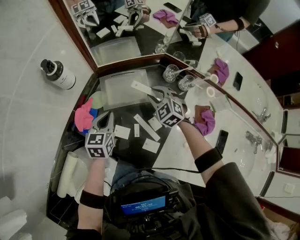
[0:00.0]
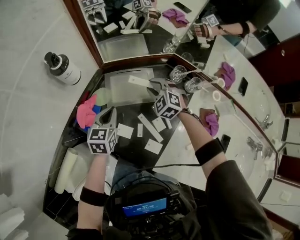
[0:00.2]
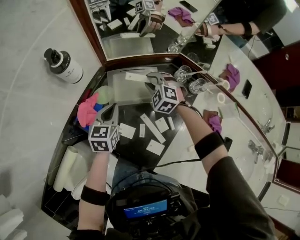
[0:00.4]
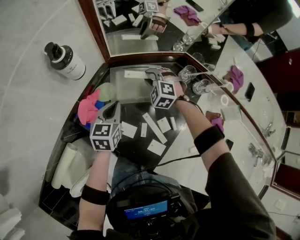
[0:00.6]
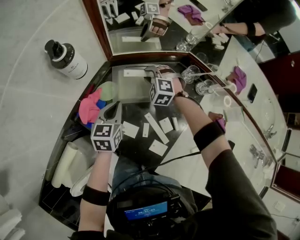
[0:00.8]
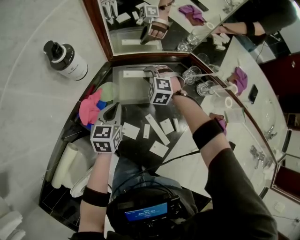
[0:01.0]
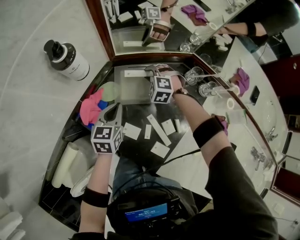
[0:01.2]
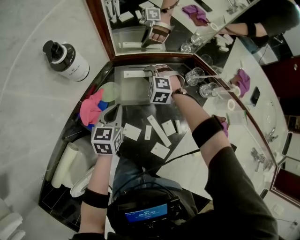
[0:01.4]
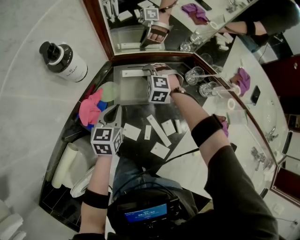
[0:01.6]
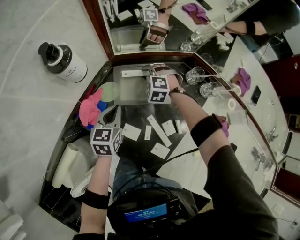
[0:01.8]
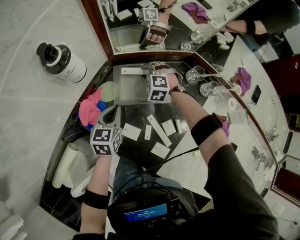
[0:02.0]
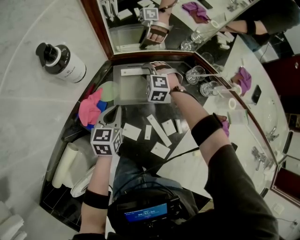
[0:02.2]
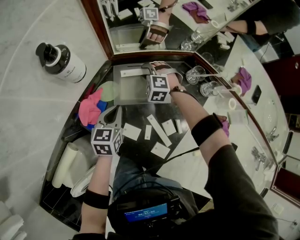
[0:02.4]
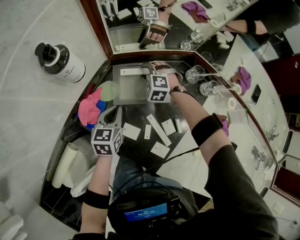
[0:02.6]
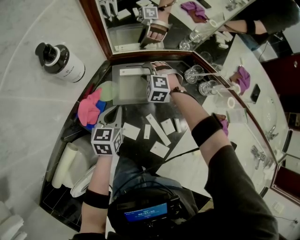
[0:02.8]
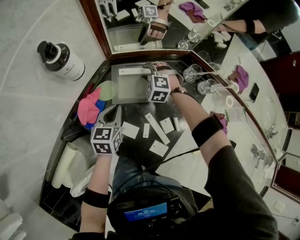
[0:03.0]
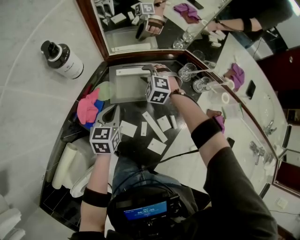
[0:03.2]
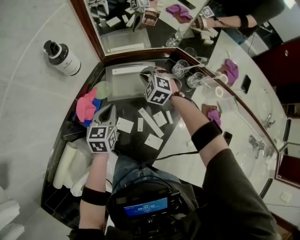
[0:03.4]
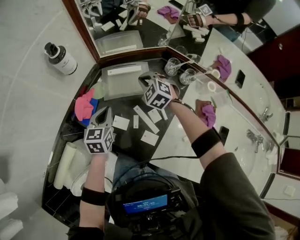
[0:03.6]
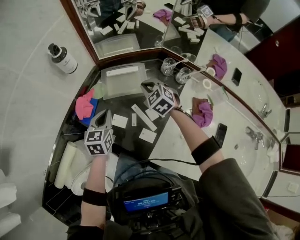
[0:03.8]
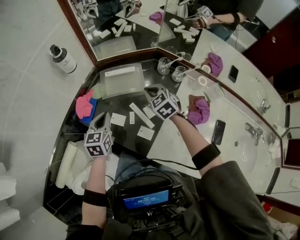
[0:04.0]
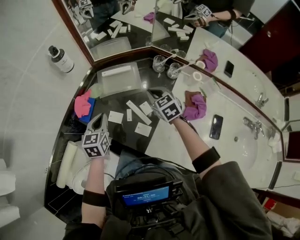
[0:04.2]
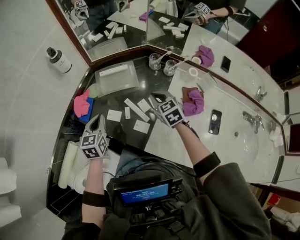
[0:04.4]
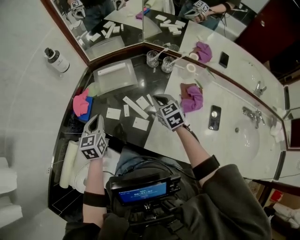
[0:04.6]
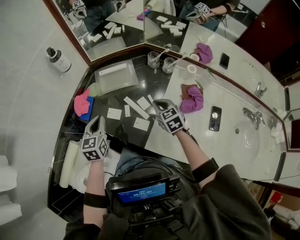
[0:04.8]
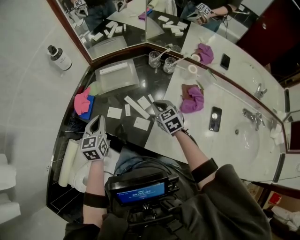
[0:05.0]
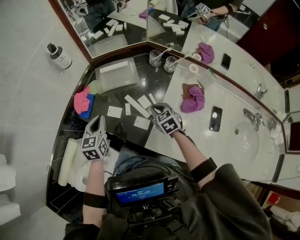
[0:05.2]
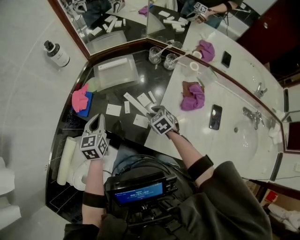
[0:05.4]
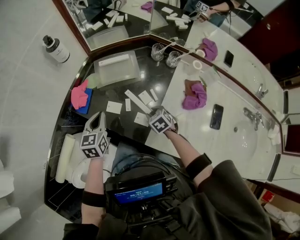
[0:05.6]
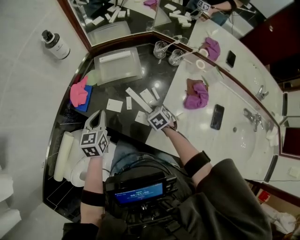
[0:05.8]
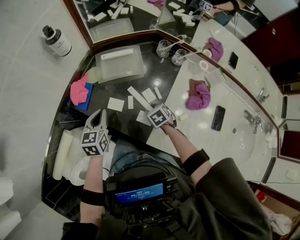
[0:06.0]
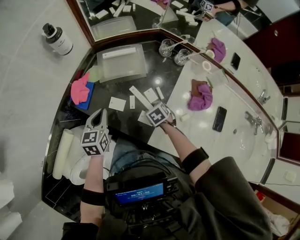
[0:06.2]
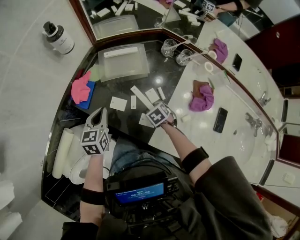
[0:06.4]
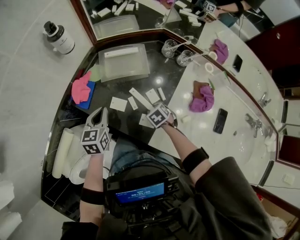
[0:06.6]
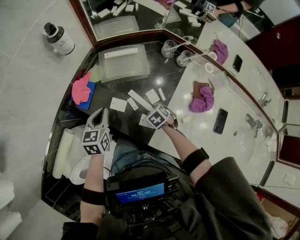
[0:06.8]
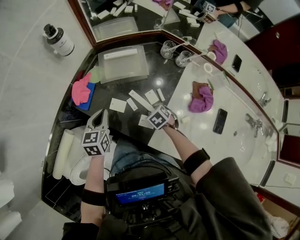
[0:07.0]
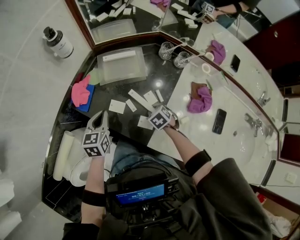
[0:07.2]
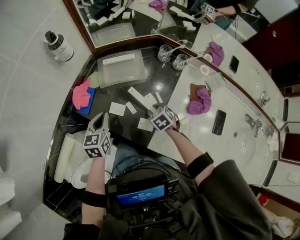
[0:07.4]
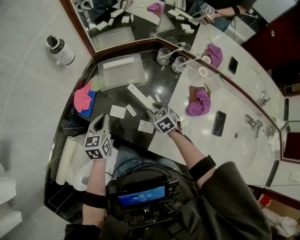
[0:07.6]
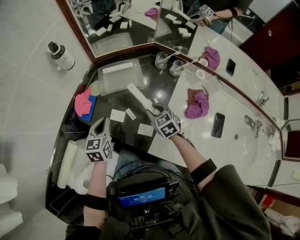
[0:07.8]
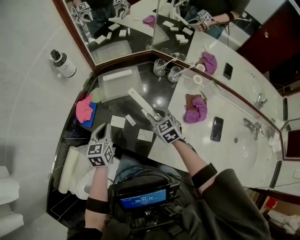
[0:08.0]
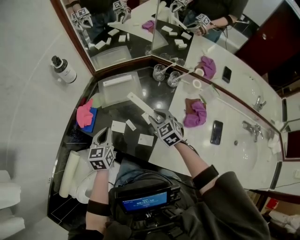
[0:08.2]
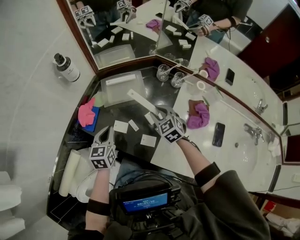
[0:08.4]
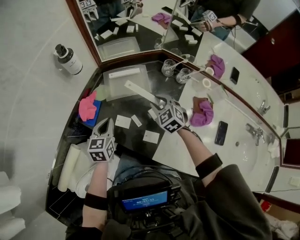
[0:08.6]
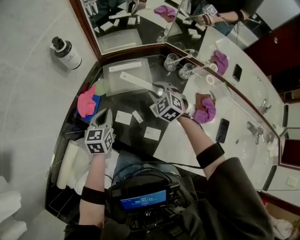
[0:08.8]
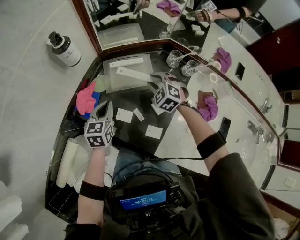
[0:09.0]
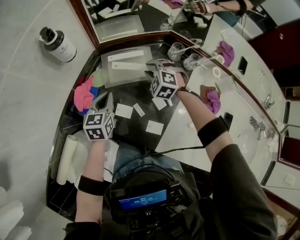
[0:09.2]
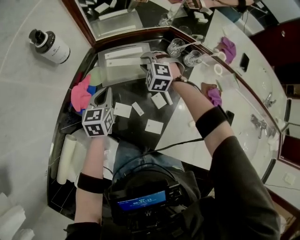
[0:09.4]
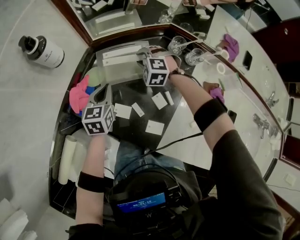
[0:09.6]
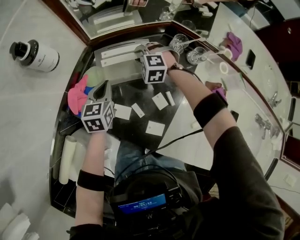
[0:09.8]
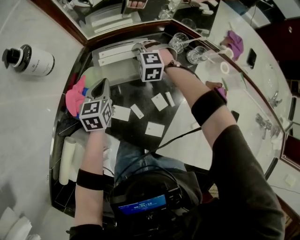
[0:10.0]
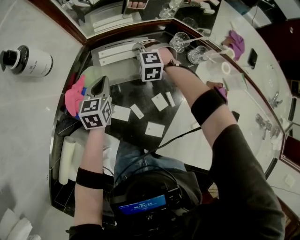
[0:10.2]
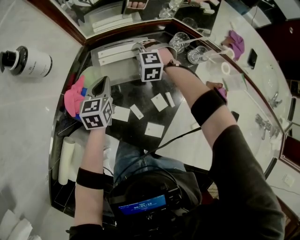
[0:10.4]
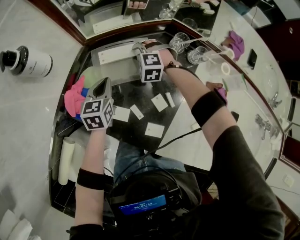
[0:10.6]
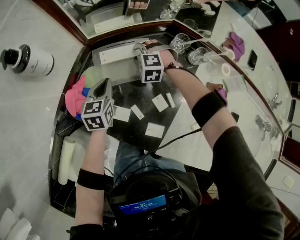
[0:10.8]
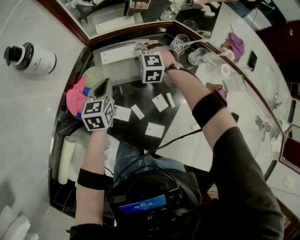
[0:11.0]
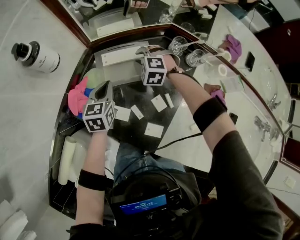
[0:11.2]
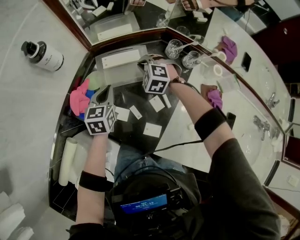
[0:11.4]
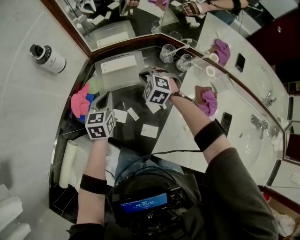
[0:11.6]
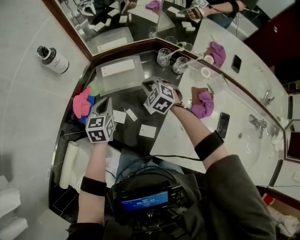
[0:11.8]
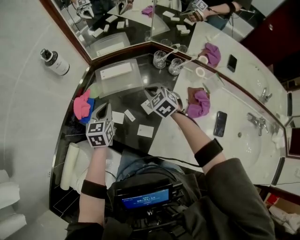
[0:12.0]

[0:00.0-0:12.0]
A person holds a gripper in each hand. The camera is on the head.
0:00.0 to 0:01.6: The left gripper shifts by about 5 cm, while the right gripper shifts some 20 cm forward, downward and to the left, and changes its angle by roughly 40 degrees.
0:01.6 to 0:03.0: Both grippers stay put.
0:03.0 to 0:04.4: The left gripper moves backward and upward, approximately 20 cm, while the right gripper heads backward, upward and to the right, covering some 35 cm, rotates around the line of its fingers by some 60 degrees, clockwise from behind, and closes.
0:04.4 to 0:06.0: The right gripper travels downward by approximately 20 cm, swivels some 30 degrees, and opens.
0:06.0 to 0:07.6: The right gripper heads upward, covering about 10 cm.
0:07.6 to 0:09.0: The left gripper goes roughly 10 cm forward, while the right gripper shifts some 15 cm forward, and turns by roughly 30 degrees.
0:09.0 to 0:10.4: The grippers both shift forward and downward by some 15 cm. The right gripper changes its angle by some 30 degrees.
0:10.4 to 0:12.0: Both grippers move backward and upward, about 20 cm. The right gripper rolls clockwise, seen from behind, by about 40 degrees, and closes up.

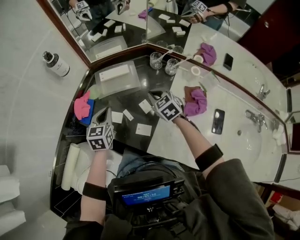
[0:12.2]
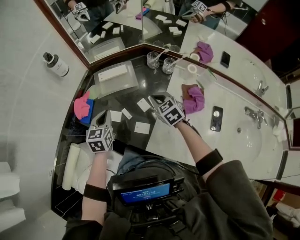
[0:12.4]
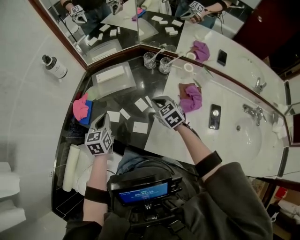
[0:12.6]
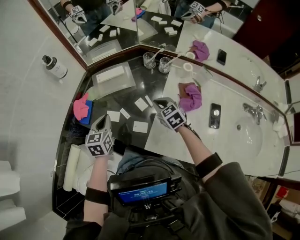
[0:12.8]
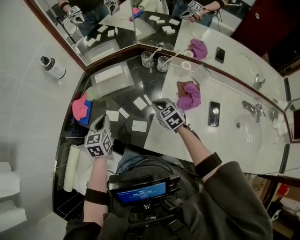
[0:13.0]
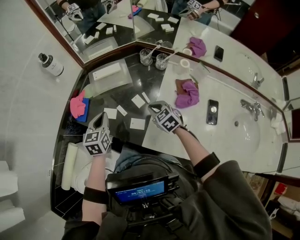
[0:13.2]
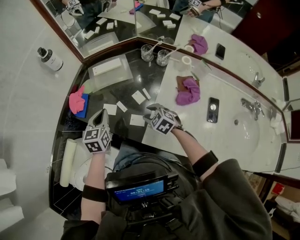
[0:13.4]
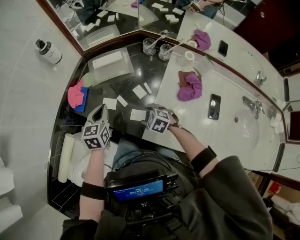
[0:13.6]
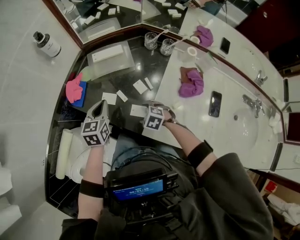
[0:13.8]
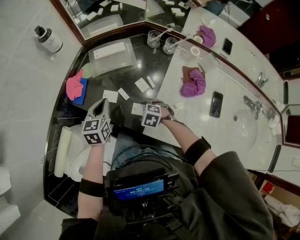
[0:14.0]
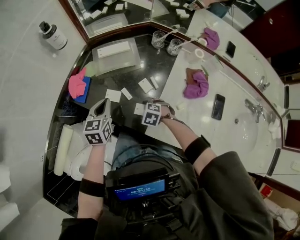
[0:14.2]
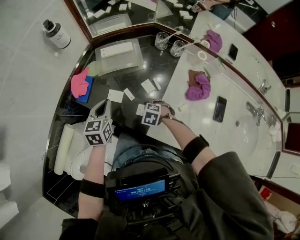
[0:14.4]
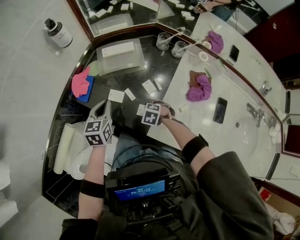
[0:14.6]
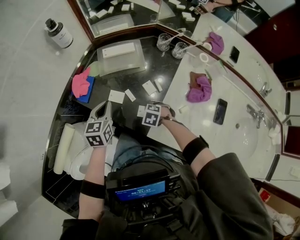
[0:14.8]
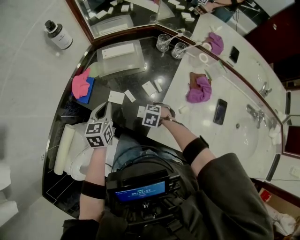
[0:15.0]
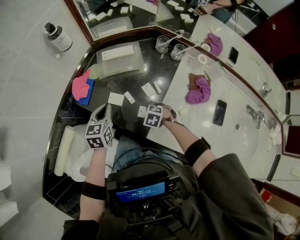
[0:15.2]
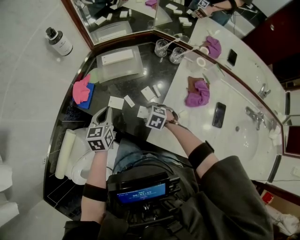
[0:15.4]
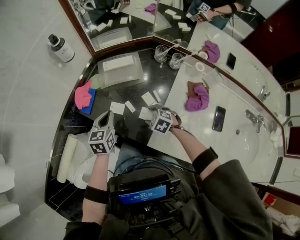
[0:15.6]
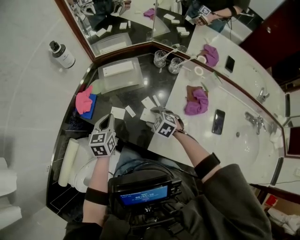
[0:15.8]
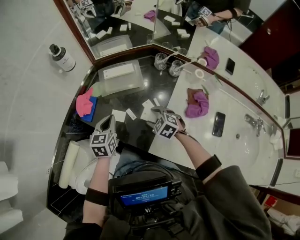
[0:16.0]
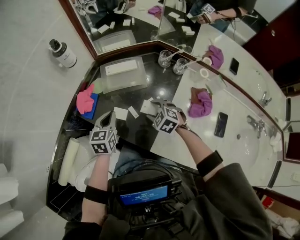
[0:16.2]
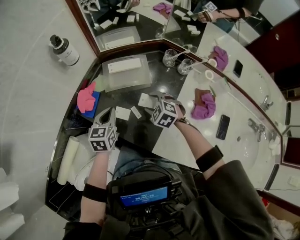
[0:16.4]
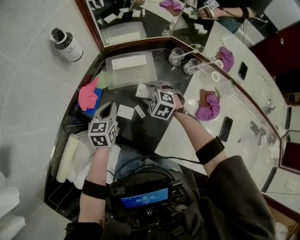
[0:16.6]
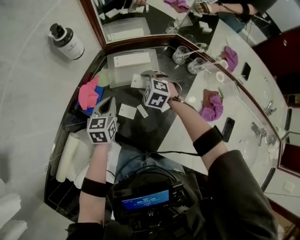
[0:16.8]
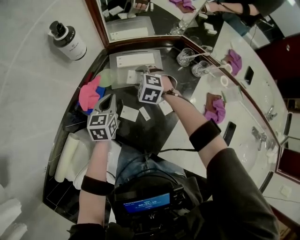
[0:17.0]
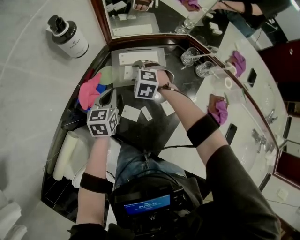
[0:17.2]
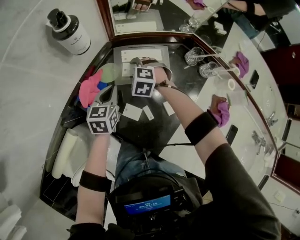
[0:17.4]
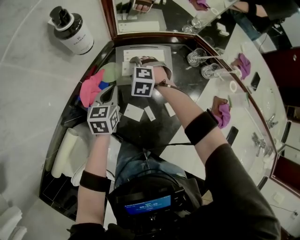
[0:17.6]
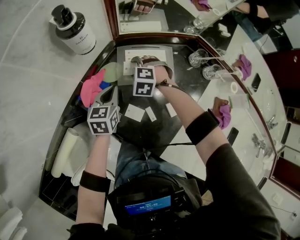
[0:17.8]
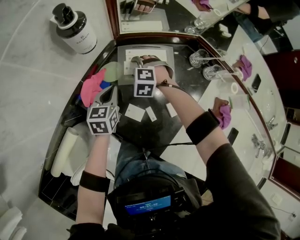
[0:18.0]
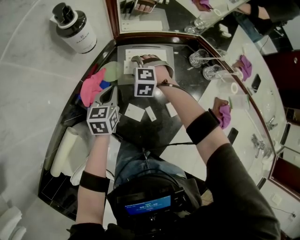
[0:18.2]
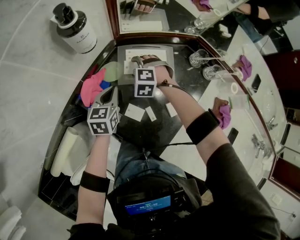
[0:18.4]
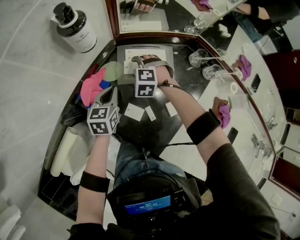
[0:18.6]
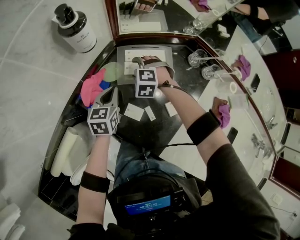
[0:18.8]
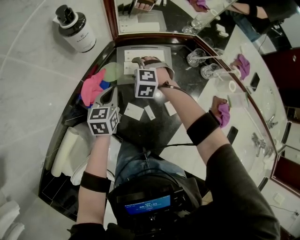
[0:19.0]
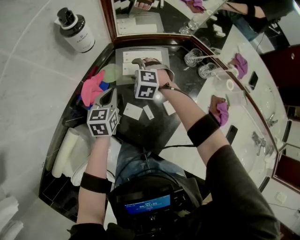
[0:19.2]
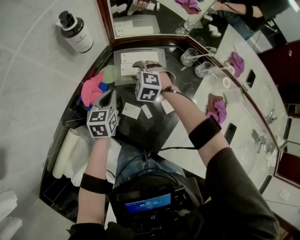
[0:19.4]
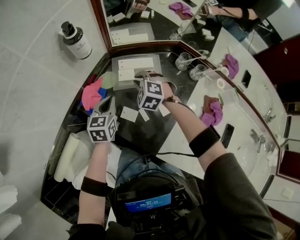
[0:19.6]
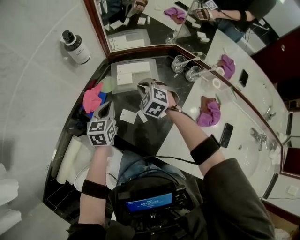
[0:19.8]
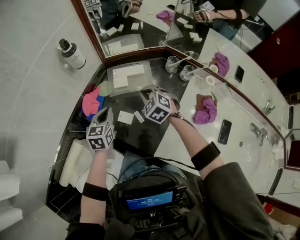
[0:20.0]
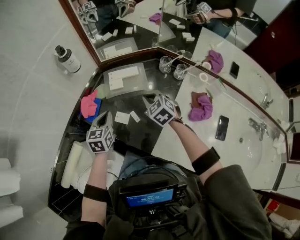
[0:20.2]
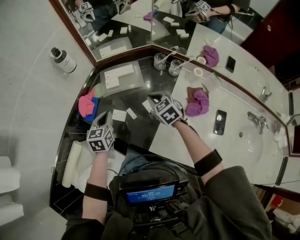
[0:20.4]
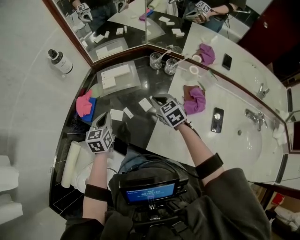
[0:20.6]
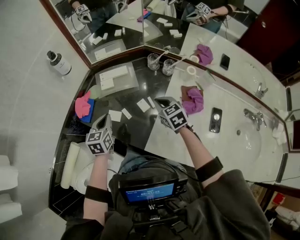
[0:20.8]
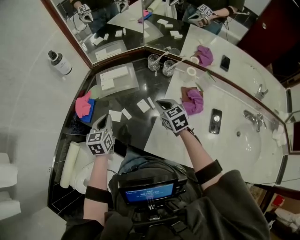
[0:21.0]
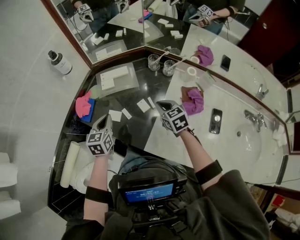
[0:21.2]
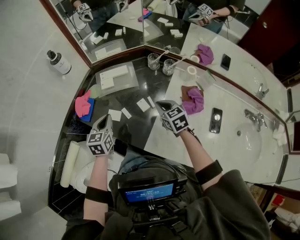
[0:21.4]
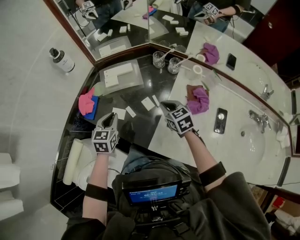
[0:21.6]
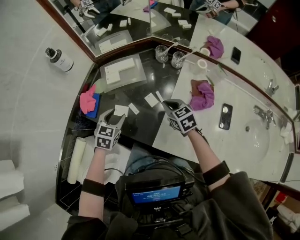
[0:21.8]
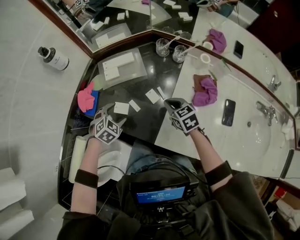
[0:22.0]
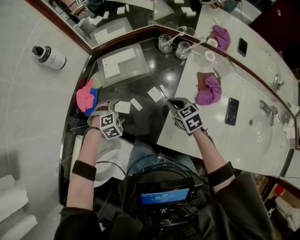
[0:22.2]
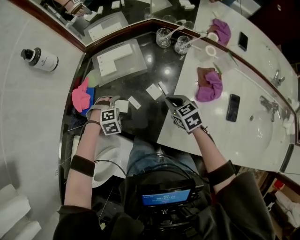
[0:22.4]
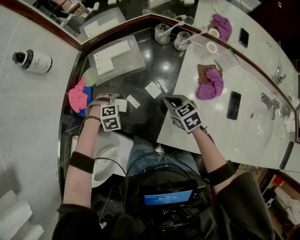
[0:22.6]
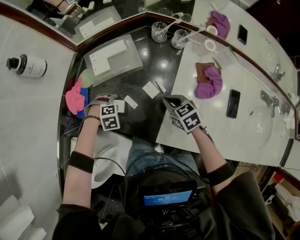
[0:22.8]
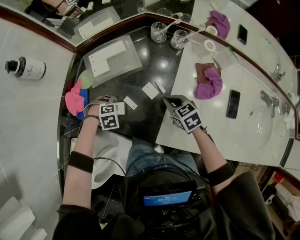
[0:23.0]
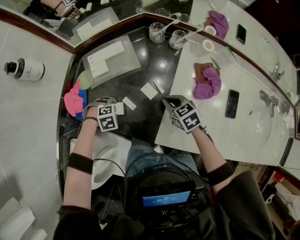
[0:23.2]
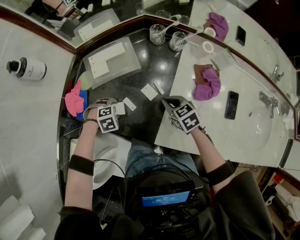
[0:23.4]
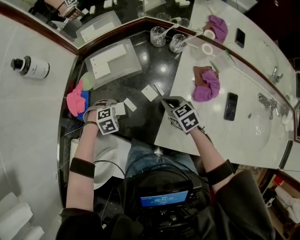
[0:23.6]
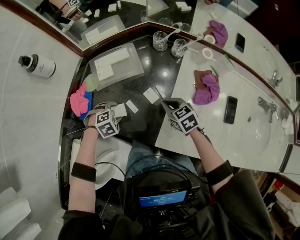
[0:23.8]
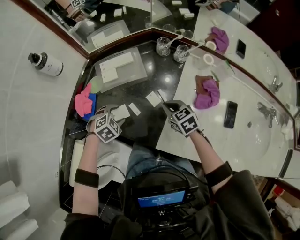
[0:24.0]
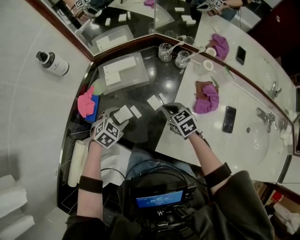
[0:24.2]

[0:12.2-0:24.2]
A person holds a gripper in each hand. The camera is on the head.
0:12.2 to 0:13.8: The left gripper heads backward, covering approximately 5 cm. The right gripper travels backward, downward and to the left by roughly 25 cm, changes its angle by some 40 degrees, and opens.
0:13.8 to 0:15.2: There are only small adjustments of the grippers.
0:15.2 to 0:16.6: The left gripper travels forward by roughly 10 cm; the right gripper travels forward and upward by some 25 cm, and changes its angle by some 20 degrees.
0:16.6 to 0:18.2: The left gripper moves forward and downward, about 10 cm, while the right gripper travels forward, to the left and downward by roughly 20 cm, and turns by about 20 degrees.
0:18.2 to 0:19.8: The right gripper shifts approximately 15 cm upward, backward and to the right, changes its angle by some 30 degrees, and closes its fingers, while the left gripper is displaced upward and backward by about 10 cm.
0:19.8 to 0:21.2: The left gripper travels backward and to the right by roughly 10 cm. The right gripper travels to the right and backward by approximately 25 cm, and twists about 40 degrees clockwise, seen from behind.
0:21.2 to 0:22.6: The left gripper moves downward, roughly 25 cm, points its fingers some 50 degrees further downward, and opens up. The right gripper heads downward, covering approximately 10 cm.
0:22.6 to 0:24.2: The left gripper is displaced upward by approximately 15 cm, rotates roughly 40 degrees, and closes its fingers.
